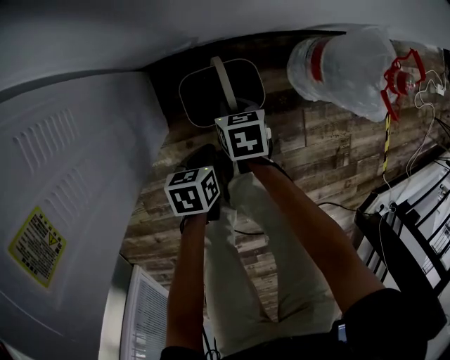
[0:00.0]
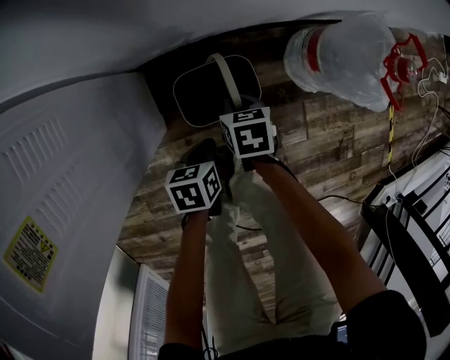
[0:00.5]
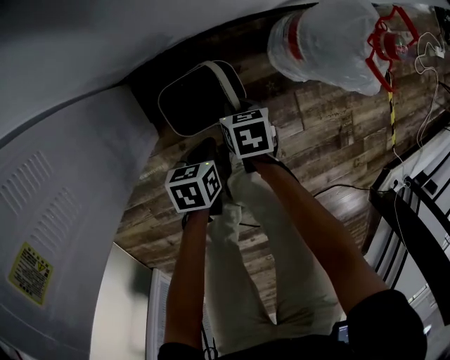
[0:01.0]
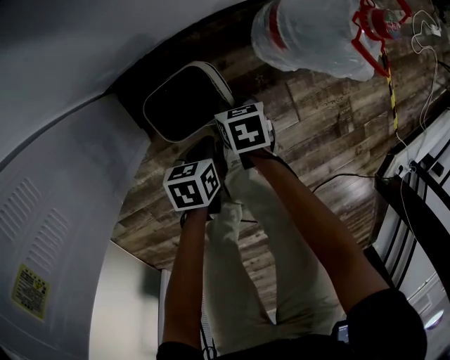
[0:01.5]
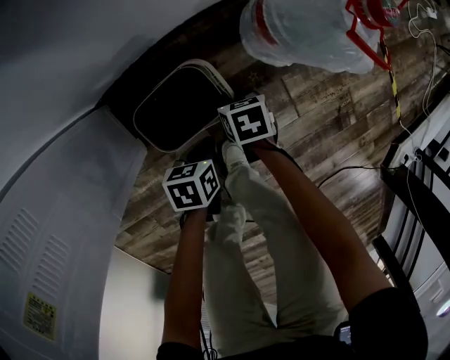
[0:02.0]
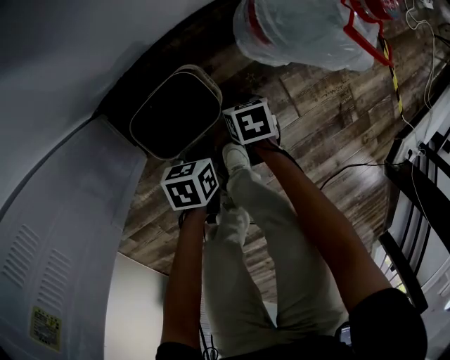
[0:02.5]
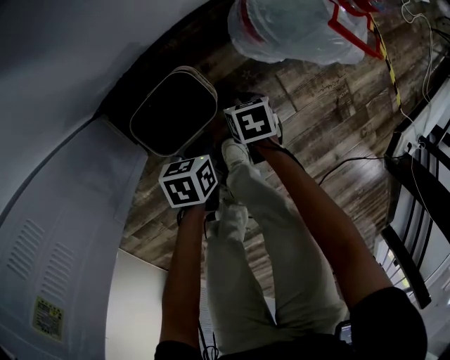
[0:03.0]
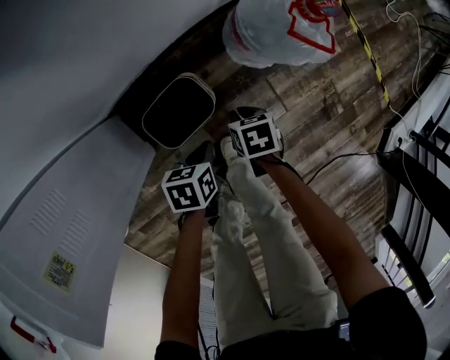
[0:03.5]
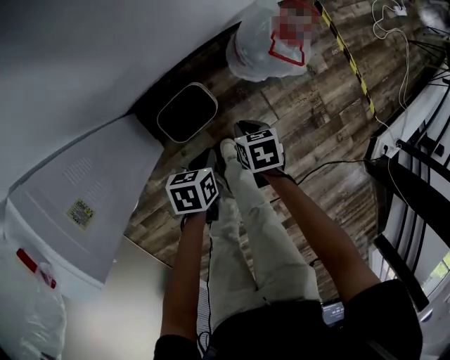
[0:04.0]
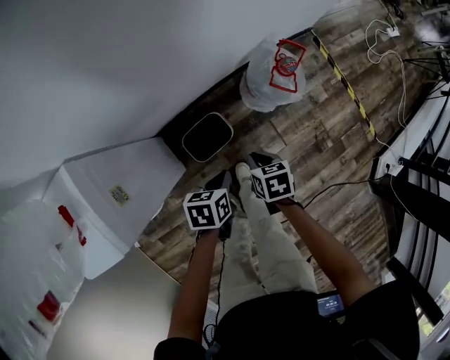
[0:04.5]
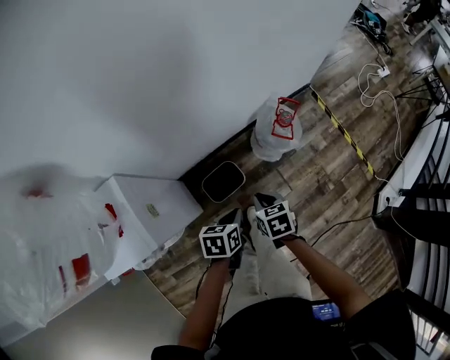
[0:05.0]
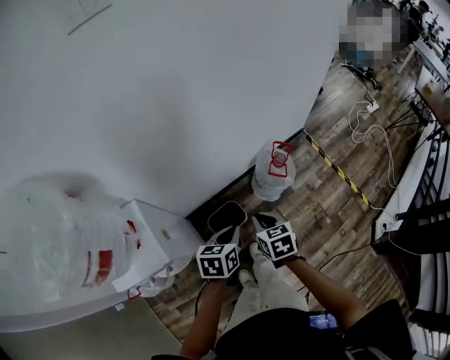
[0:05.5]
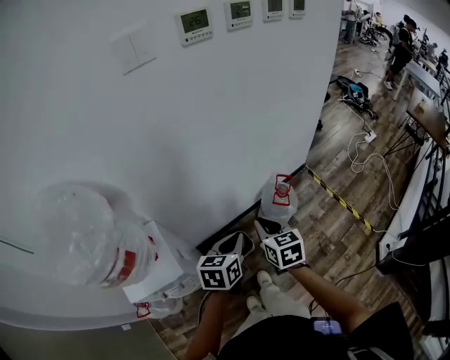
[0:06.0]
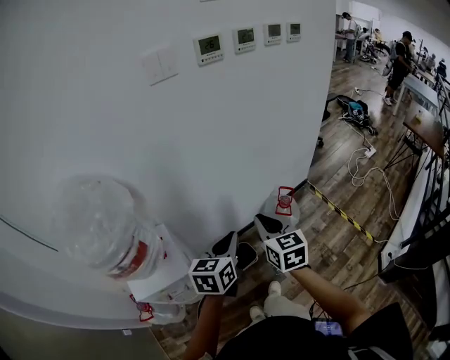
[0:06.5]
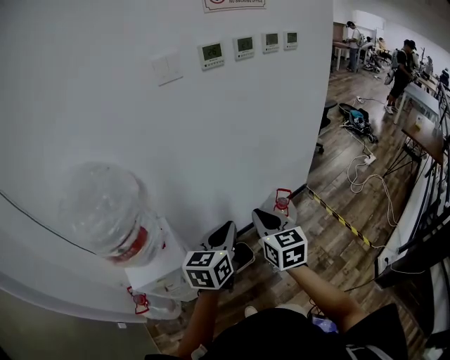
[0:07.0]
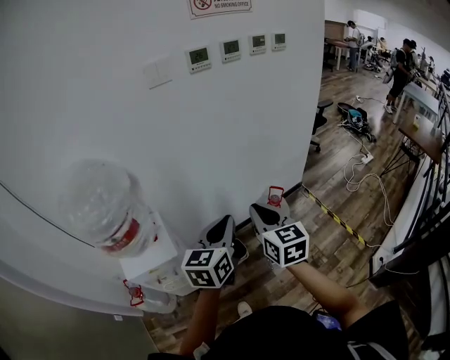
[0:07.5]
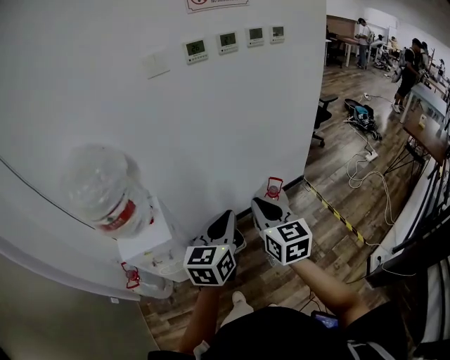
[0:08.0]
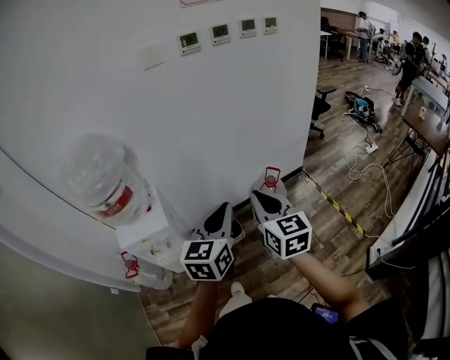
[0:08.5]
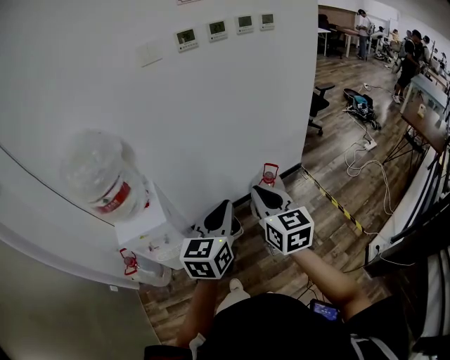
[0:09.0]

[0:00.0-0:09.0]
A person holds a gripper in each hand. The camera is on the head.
0:00.0 to 0:02.0: Both grippers move to the right and downward, roughly 15 cm.
0:02.0 to 0:04.5: Both grippers move upward, approximately 35 cm.
0:04.5 to 0:07.0: The two grippers go roughly 50 cm upward. The right gripper tips its fingers upward by roughly 50 degrees; the left gripper tips its fingers upward by approximately 40 degrees.
0:07.0 to 0:09.0: Both grippers move backward and to the right, about 15 cm.

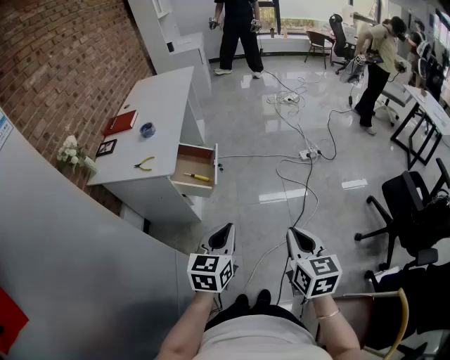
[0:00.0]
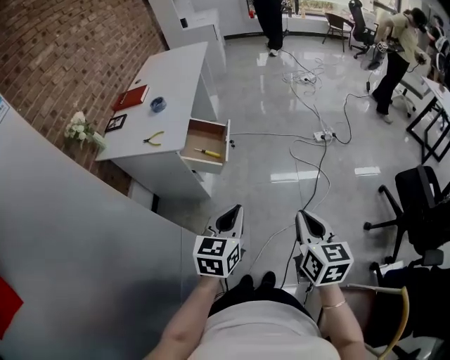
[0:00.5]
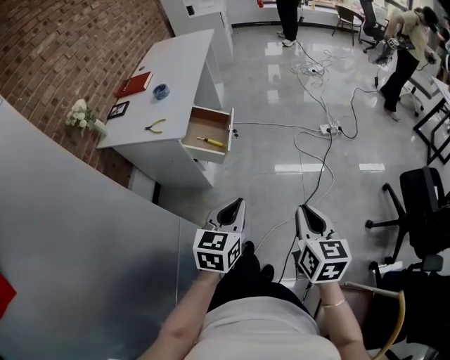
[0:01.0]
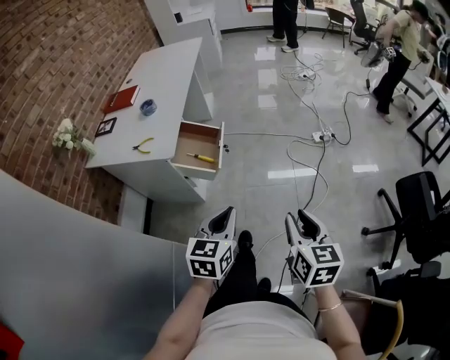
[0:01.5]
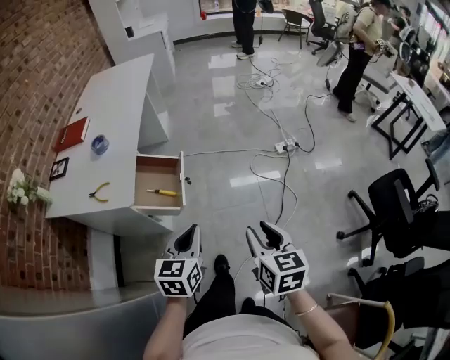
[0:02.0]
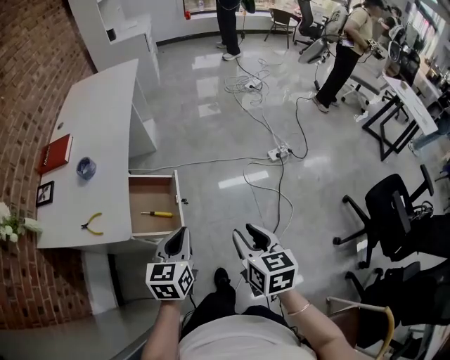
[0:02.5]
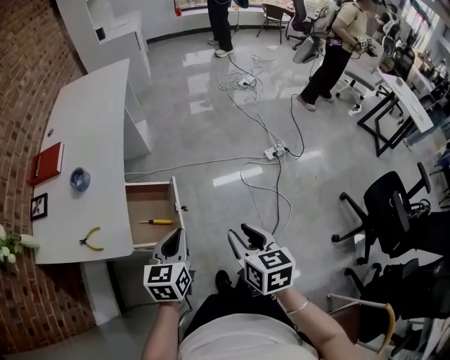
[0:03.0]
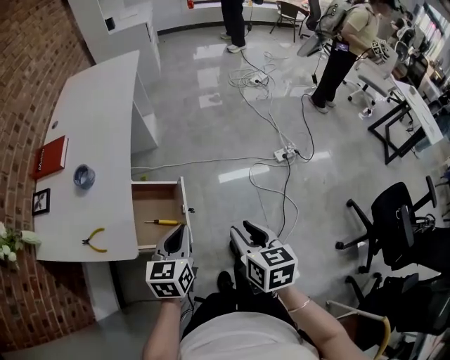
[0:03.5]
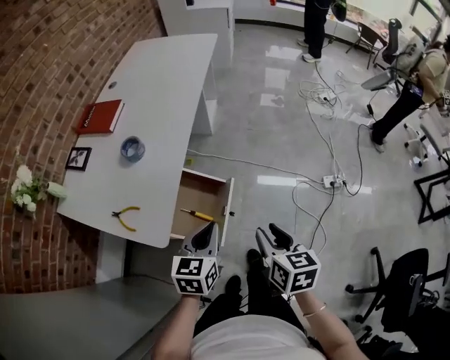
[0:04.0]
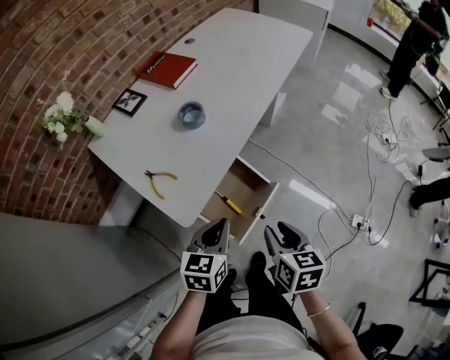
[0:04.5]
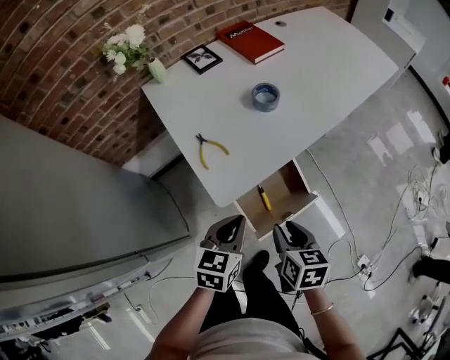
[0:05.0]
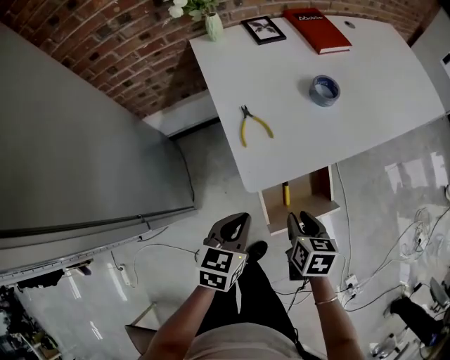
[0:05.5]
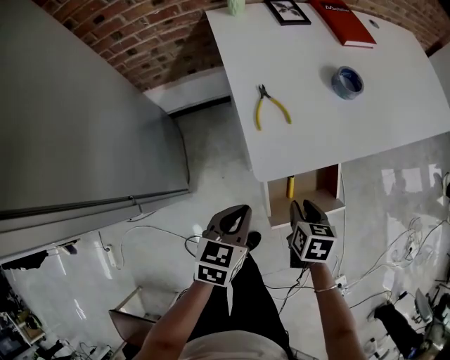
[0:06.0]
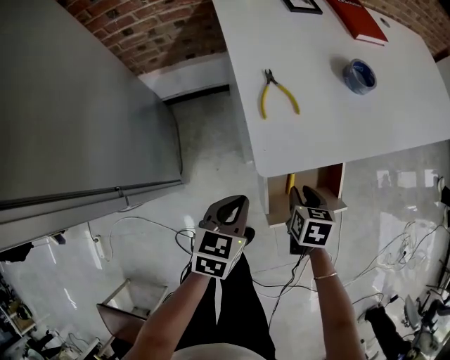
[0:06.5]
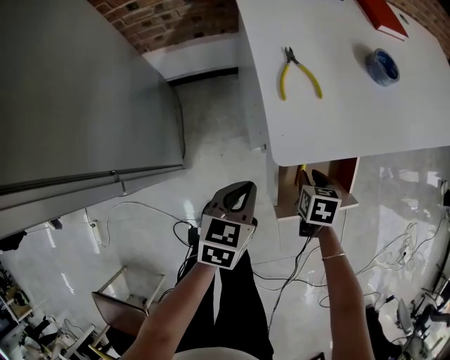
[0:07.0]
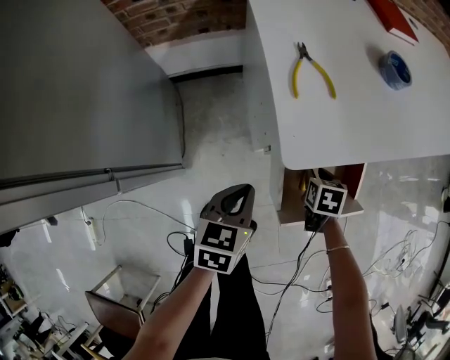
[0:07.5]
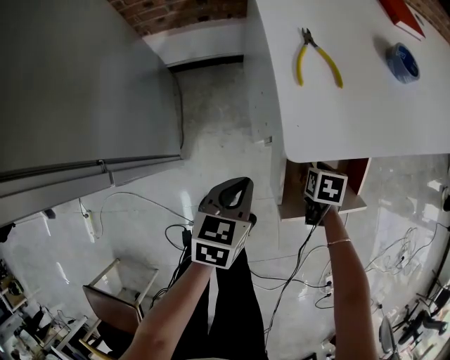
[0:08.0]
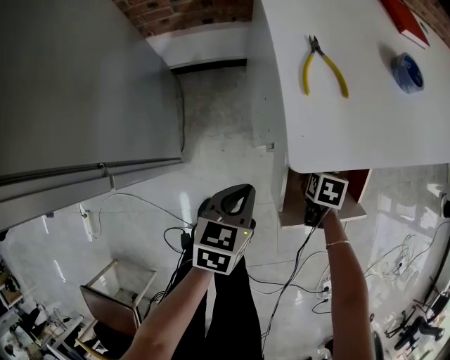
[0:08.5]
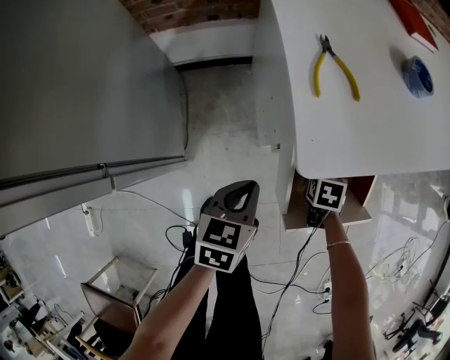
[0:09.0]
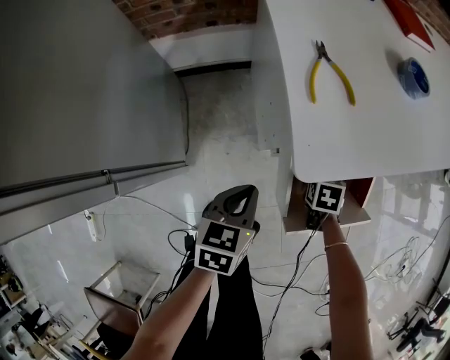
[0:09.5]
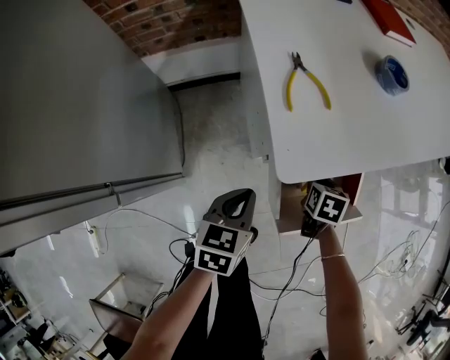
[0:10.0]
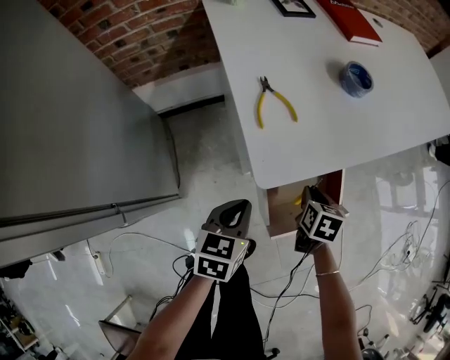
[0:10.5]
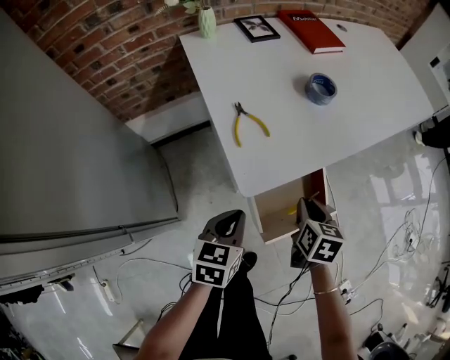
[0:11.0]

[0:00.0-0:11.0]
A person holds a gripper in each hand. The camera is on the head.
0:00.0 to 0:02.0: Both grippers travel together forward, about 20 cm. The right gripper opens.
0:02.0 to 0:03.5: The right gripper goes roughly 20 cm forward and to the left. The left gripper heads forward, covering some 20 cm.
0:03.5 to 0:05.5: The right gripper moves some 30 cm, and swivels roughly 70 degrees; the left gripper shifts by roughly 20 cm, and rotates about 60 degrees.
0:05.5 to 0:07.5: The right gripper moves downward and forward, some 20 cm, and turns by approximately 20 degrees; the left gripper heads downward, covering approximately 15 cm.
0:07.5 to 0:09.0: The grippers make only small movements.
0:09.0 to 0:11.0: The right gripper shifts some 20 cm upward, and changes its angle by some 30 degrees; the left gripper goes roughly 10 cm upward.

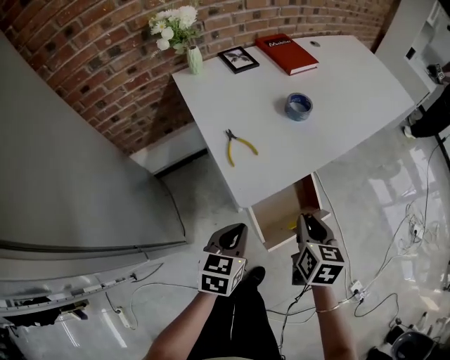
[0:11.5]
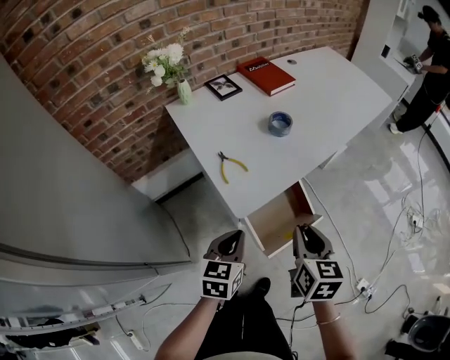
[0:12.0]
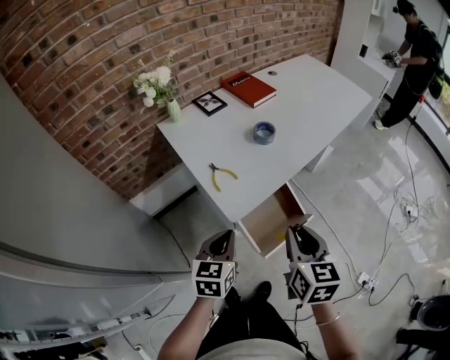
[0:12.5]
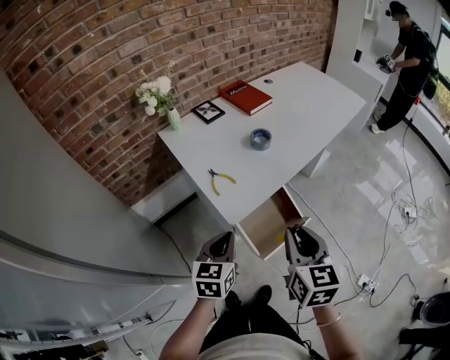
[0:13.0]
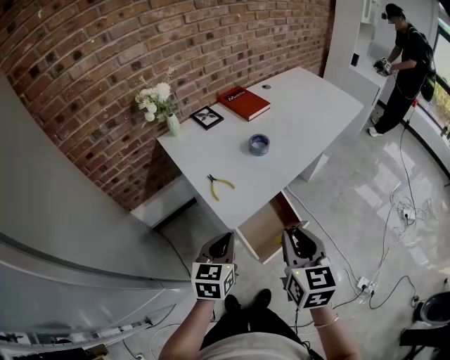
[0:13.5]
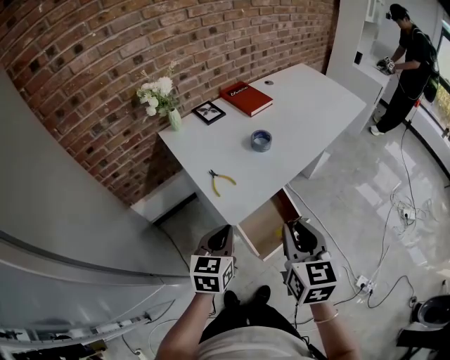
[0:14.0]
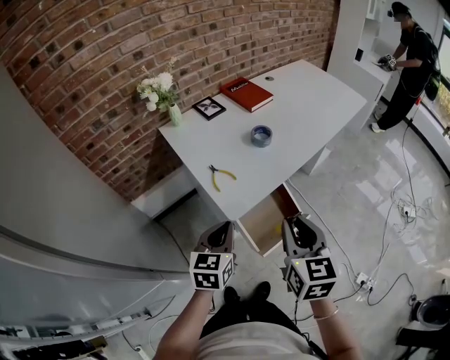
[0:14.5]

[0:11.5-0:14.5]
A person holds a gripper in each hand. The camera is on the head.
0:11.5 to 0:13.0: The right gripper moves upward and backward, roughly 20 cm, while the left gripper heads upward, covering approximately 10 cm.
0:13.0 to 0:14.5: The grippers stay close to where they were, moving slightly.

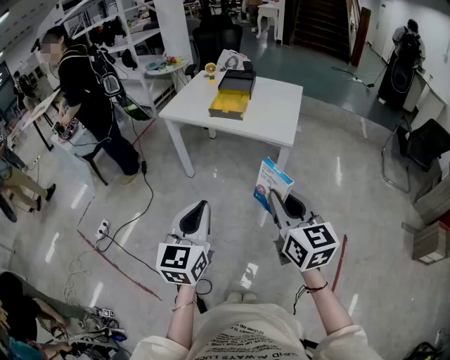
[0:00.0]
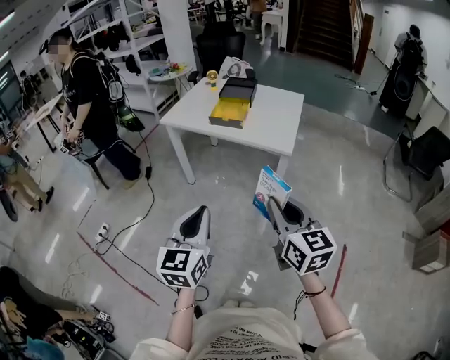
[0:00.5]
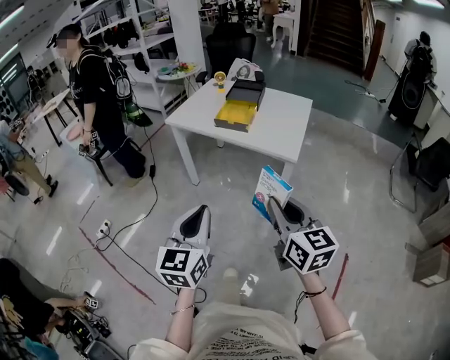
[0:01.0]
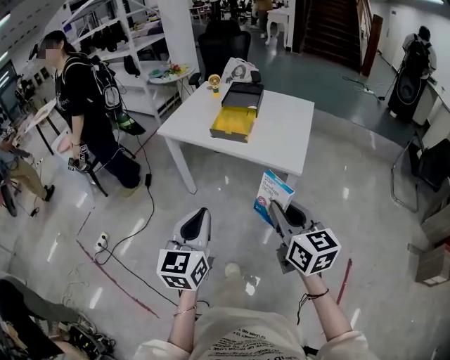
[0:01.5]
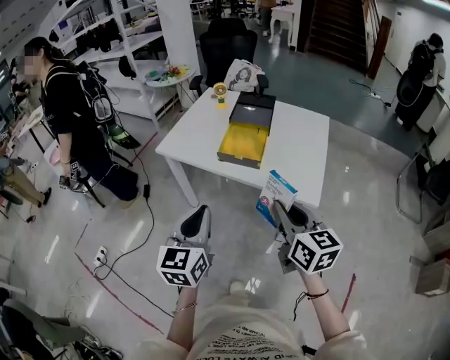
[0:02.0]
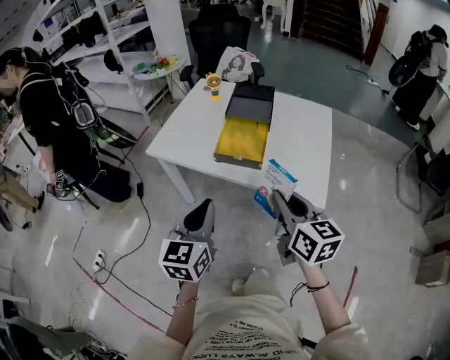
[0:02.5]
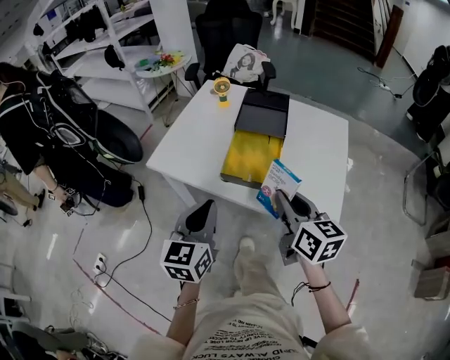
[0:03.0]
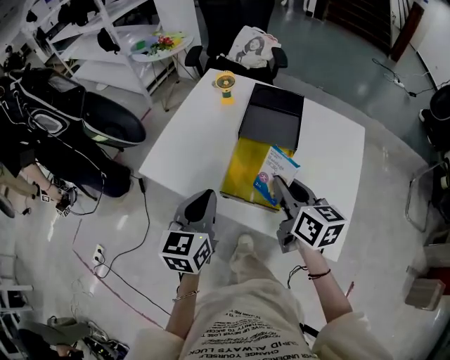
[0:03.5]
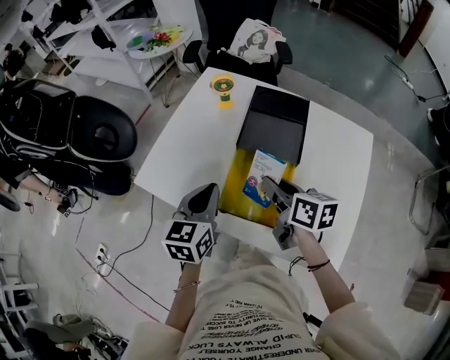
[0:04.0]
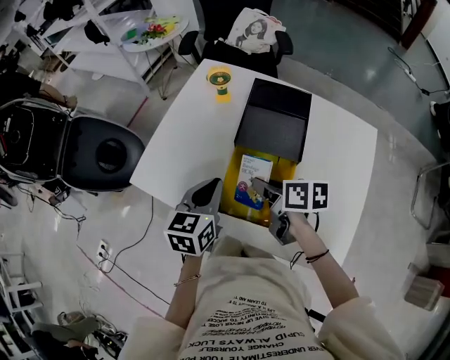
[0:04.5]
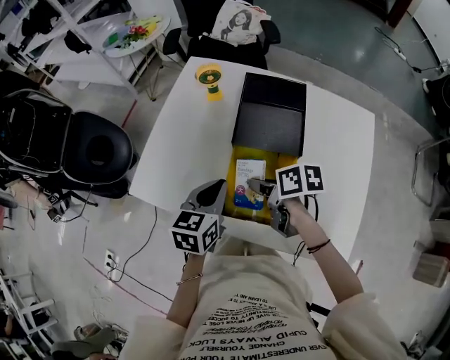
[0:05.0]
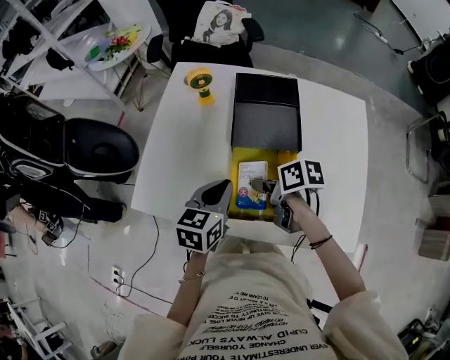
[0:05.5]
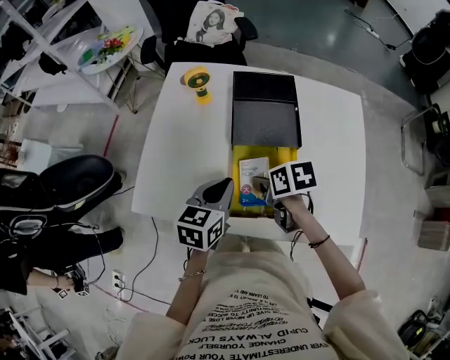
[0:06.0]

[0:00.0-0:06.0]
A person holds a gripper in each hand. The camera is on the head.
0:00.0 to 0:02.0: Both grippers move forward, about 30 cm.
0:02.0 to 0:04.0: The two grippers go roughly 40 cm forward. The right gripper rotates some 30 degrees.
0:04.0 to 0:06.0: The left gripper heads downward, covering some 5 cm, and swivels about 30 degrees. Meanwhile the right gripper moves downward, some 10 cm, points its fingers roughly 30 degrees further downward, and opens its fingers.
